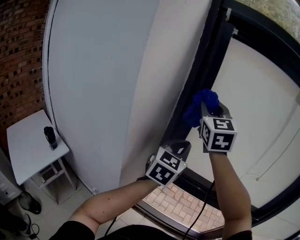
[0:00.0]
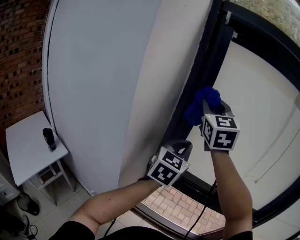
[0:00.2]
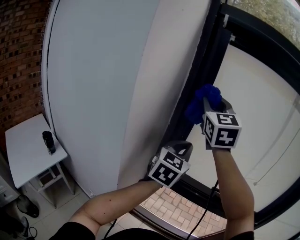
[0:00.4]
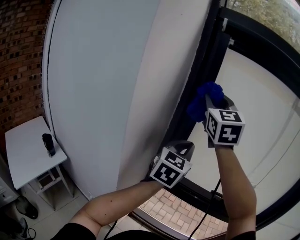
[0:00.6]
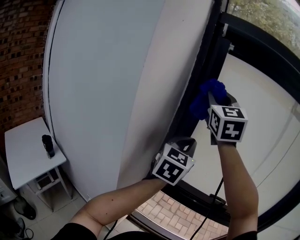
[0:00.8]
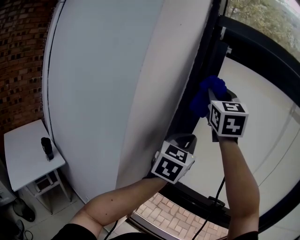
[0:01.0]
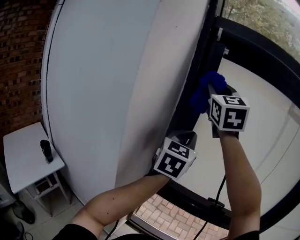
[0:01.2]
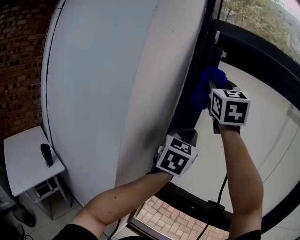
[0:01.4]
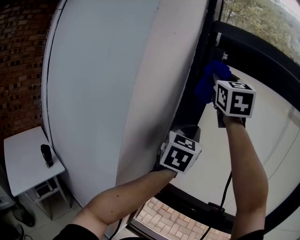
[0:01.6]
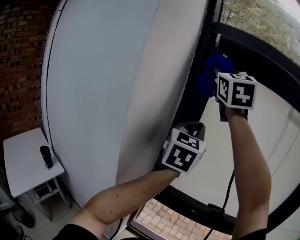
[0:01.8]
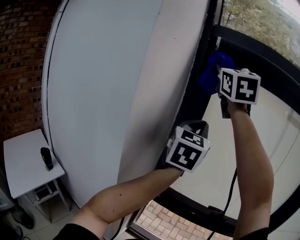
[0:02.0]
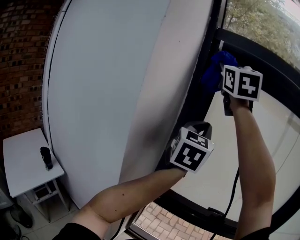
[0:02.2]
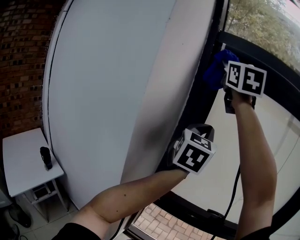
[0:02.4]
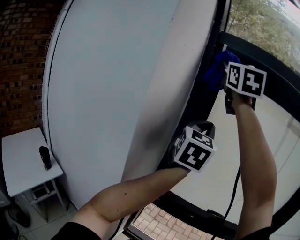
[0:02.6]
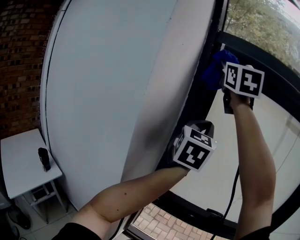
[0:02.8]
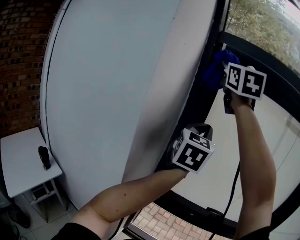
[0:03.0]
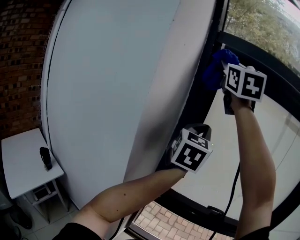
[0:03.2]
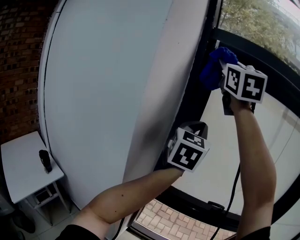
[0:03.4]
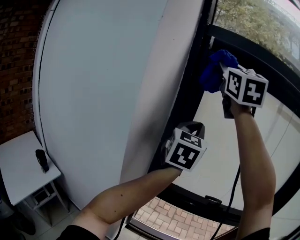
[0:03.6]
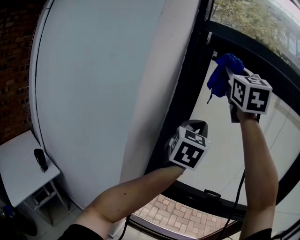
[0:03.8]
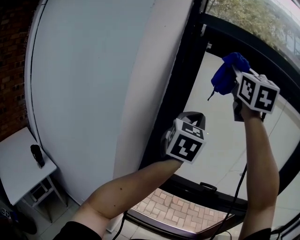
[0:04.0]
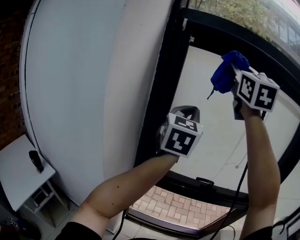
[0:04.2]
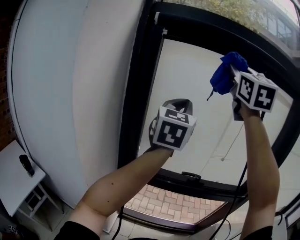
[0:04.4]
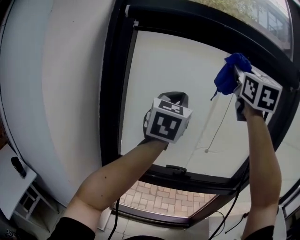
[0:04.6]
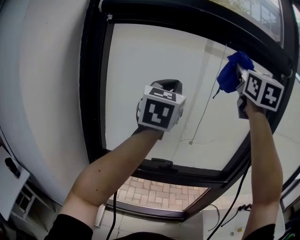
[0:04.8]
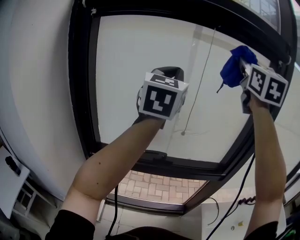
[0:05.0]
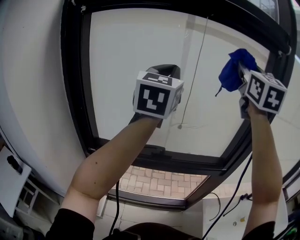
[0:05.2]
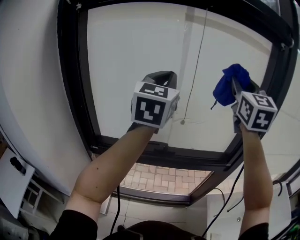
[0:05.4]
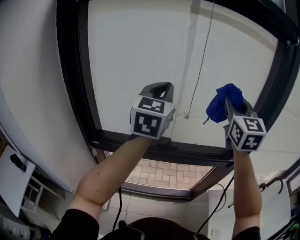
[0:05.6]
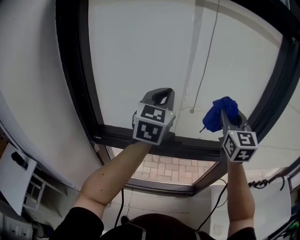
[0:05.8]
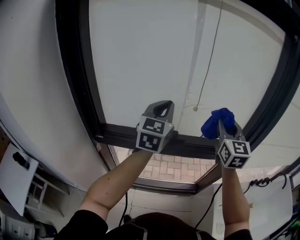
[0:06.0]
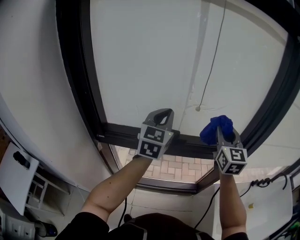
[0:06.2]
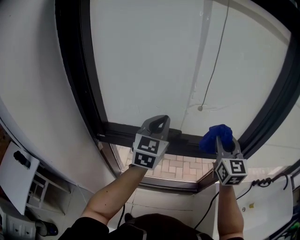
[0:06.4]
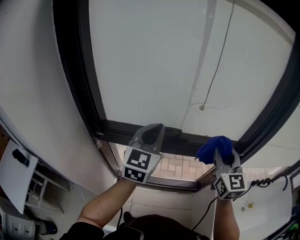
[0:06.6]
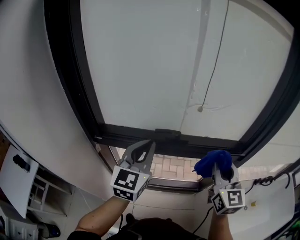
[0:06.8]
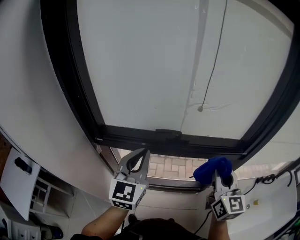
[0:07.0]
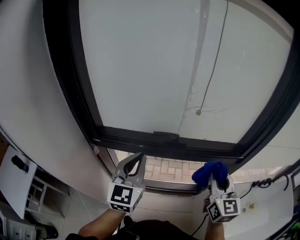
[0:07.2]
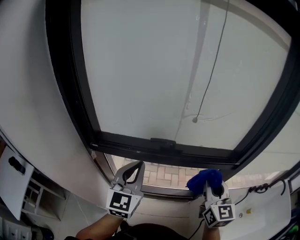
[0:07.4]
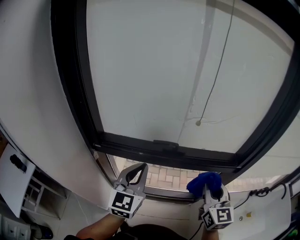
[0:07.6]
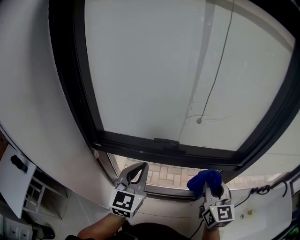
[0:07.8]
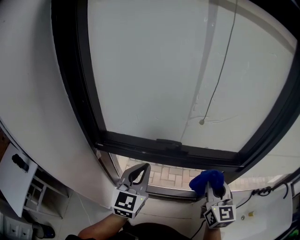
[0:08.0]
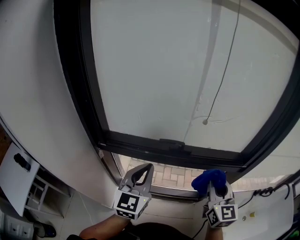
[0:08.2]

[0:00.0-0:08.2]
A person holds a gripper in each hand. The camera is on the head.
0:00.0 to 0:01.6: The grippers both shift upward by approximately 20 cm.
0:01.6 to 0:03.2: The right gripper shifts some 10 cm upward.
0:03.2 to 0:05.0: The left gripper moves to the right, roughly 30 cm; the right gripper moves to the right, about 50 cm, and turns by roughly 30 degrees.
0:05.0 to 0:06.6: The grippers both shift downward by some 40 cm. The right gripper swivels some 20 degrees.
0:06.6 to 0:08.2: The right gripper shifts some 5 cm downward; the left gripper travels backward and downward by approximately 10 cm.

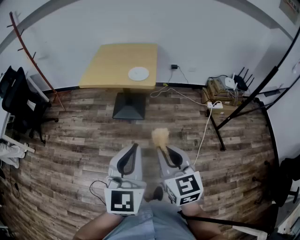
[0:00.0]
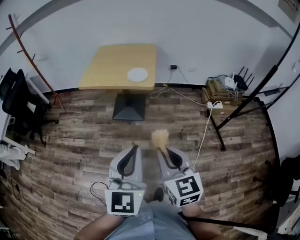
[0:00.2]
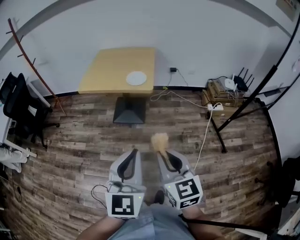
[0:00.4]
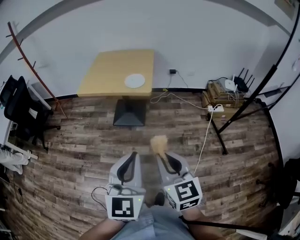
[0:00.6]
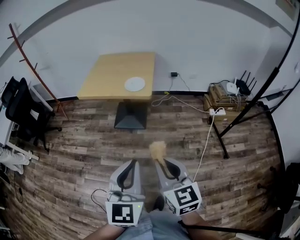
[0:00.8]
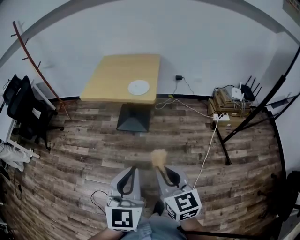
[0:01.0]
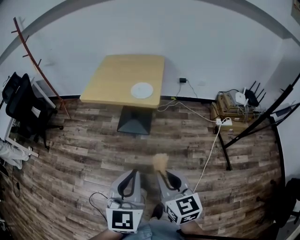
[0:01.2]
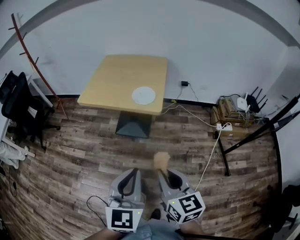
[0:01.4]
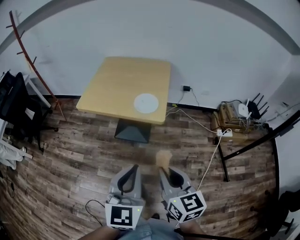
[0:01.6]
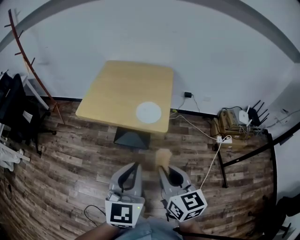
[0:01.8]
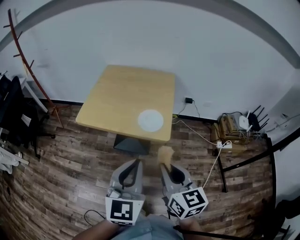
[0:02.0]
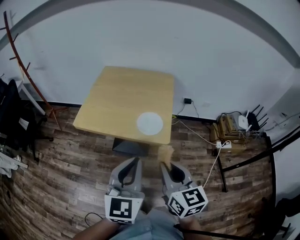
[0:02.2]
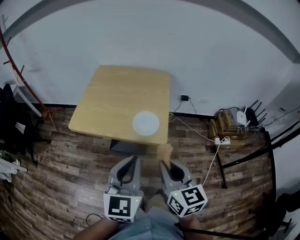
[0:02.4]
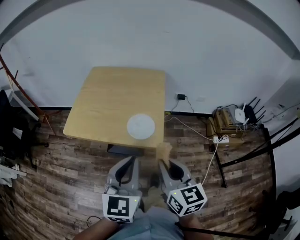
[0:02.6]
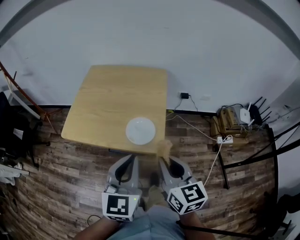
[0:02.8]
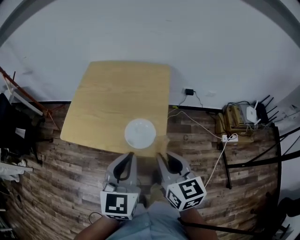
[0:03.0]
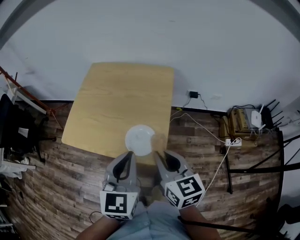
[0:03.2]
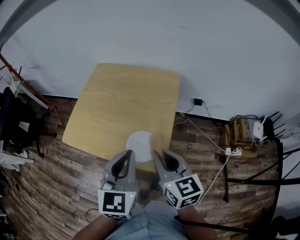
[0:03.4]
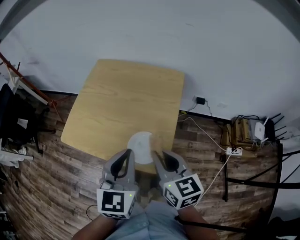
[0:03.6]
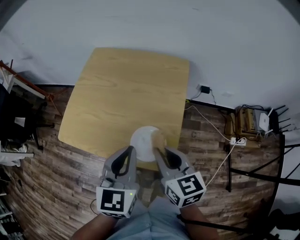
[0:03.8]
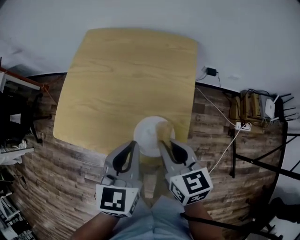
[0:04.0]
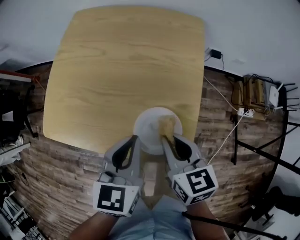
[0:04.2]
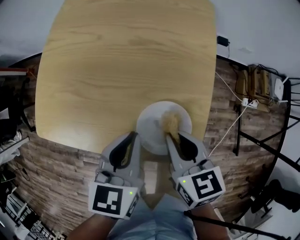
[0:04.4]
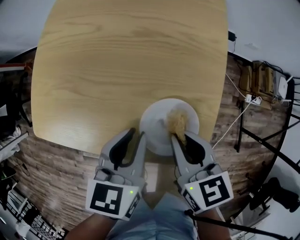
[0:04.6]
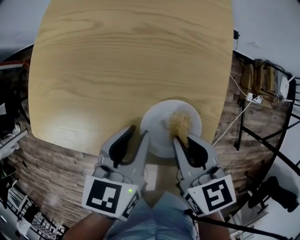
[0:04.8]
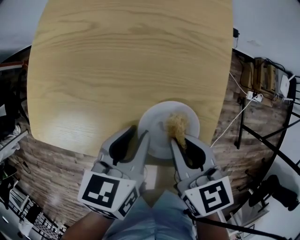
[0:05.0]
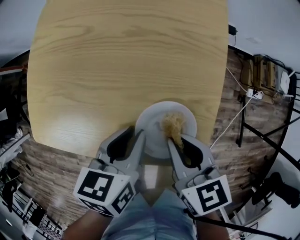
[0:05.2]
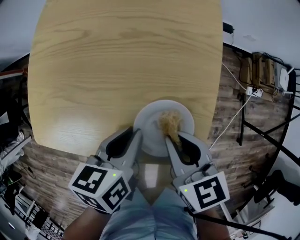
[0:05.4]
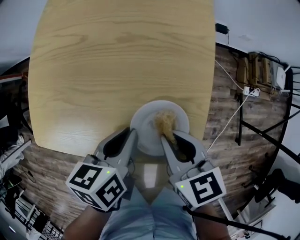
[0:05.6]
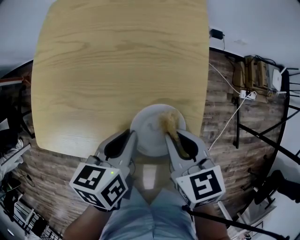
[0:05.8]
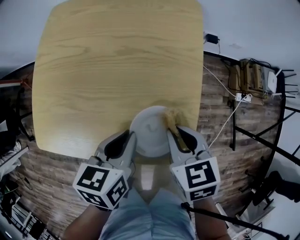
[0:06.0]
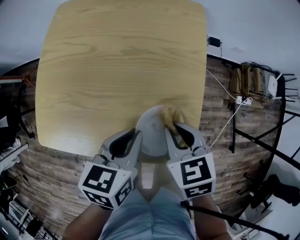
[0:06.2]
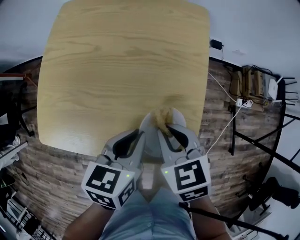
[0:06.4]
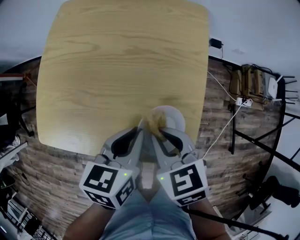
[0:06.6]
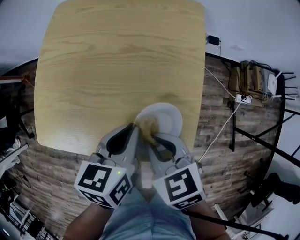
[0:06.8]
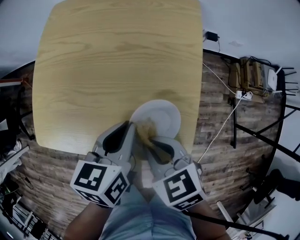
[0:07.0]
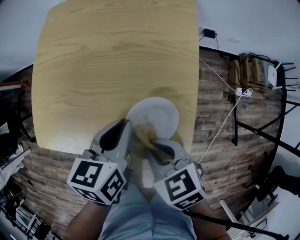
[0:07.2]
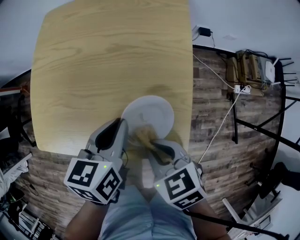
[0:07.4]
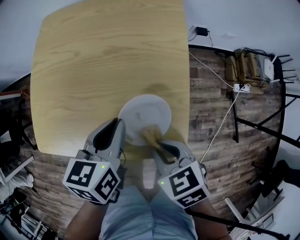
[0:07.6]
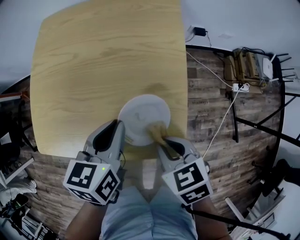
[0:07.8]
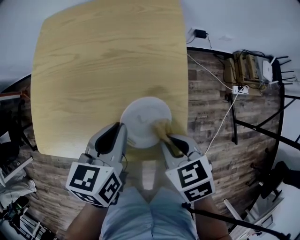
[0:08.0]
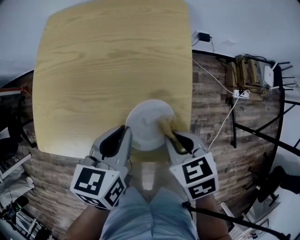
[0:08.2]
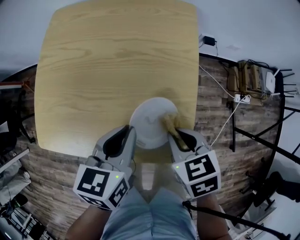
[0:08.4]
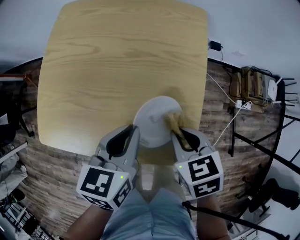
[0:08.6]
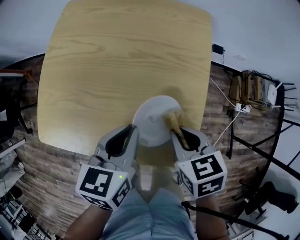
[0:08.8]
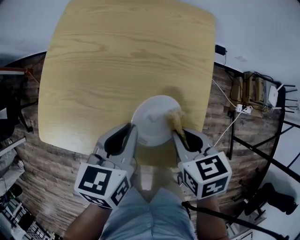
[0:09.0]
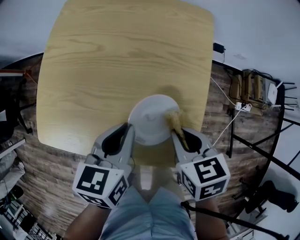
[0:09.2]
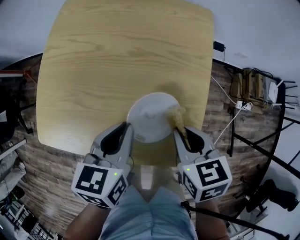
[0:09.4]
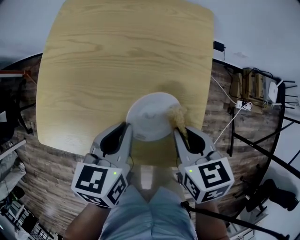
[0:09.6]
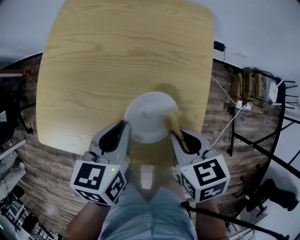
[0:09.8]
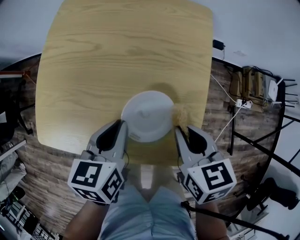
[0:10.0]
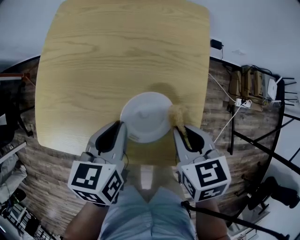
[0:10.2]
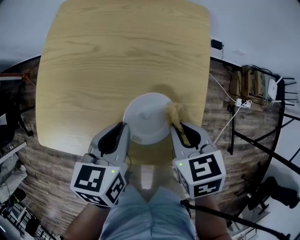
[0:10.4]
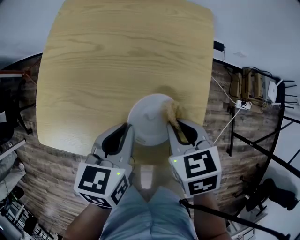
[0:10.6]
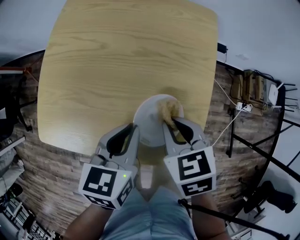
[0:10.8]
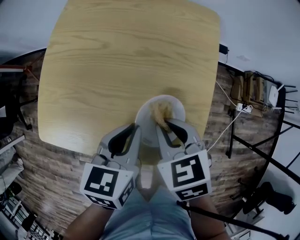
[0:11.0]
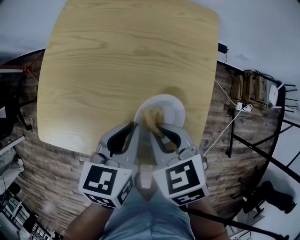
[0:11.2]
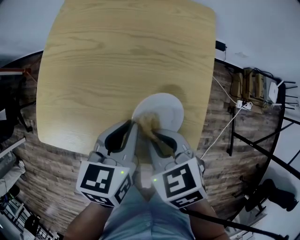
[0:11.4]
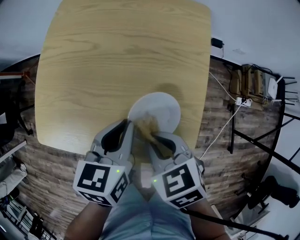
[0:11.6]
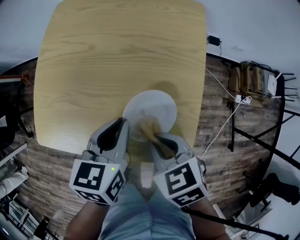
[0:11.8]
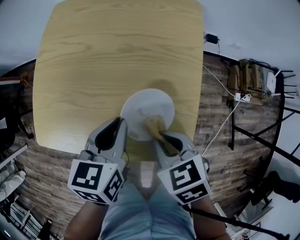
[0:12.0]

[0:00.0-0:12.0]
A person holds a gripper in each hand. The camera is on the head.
0:00.0 to 0:01.6: The grippers both shift forward by roughly 20 cm.
0:01.6 to 0:03.0: Both grippers travel together forward, approximately 30 cm.
0:03.0 to 0:04.4: The grippers both shift downward and forward by approximately 20 cm. The left gripper changes its angle by roughly 30 degrees, while the right gripper changes its angle by approximately 20 degrees.
0:06.0 to 0:07.6: The right gripper moves backward, about 5 cm.
0:07.6 to 0:09.0: The right gripper travels forward by approximately 10 cm.
0:09.0 to 0:10.4: The grippers stay close to where they were, moving slightly.
0:10.4 to 0:12.0: The right gripper shifts by approximately 5 cm.

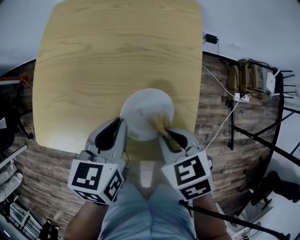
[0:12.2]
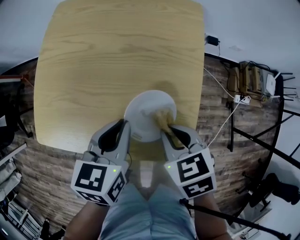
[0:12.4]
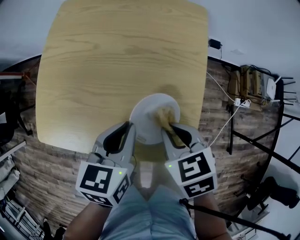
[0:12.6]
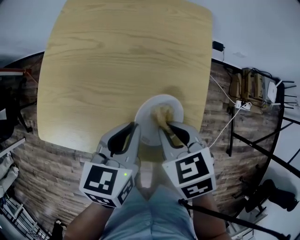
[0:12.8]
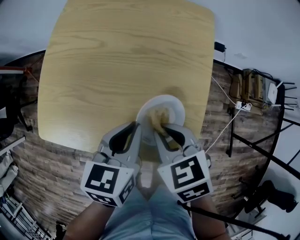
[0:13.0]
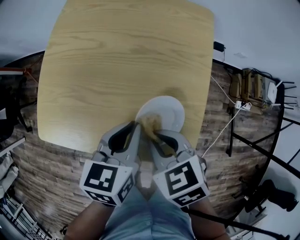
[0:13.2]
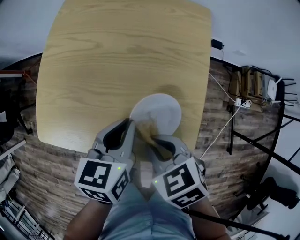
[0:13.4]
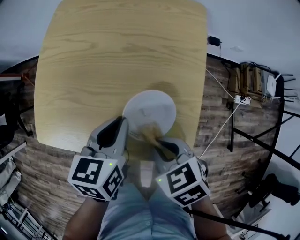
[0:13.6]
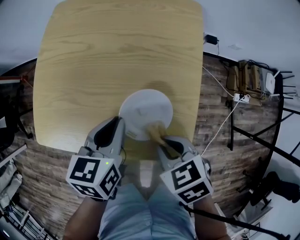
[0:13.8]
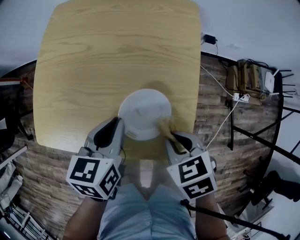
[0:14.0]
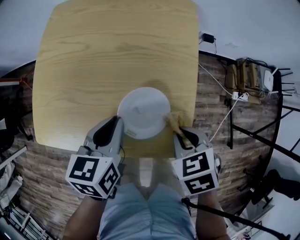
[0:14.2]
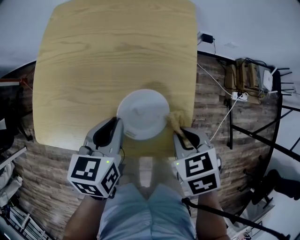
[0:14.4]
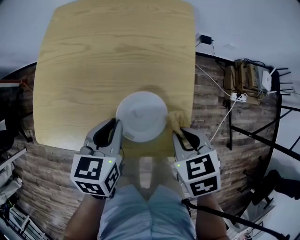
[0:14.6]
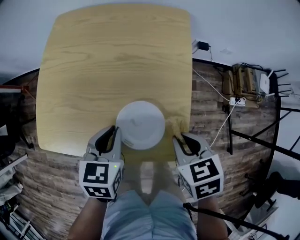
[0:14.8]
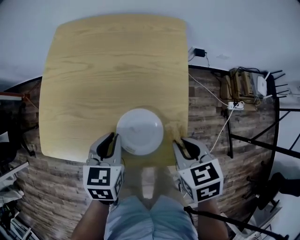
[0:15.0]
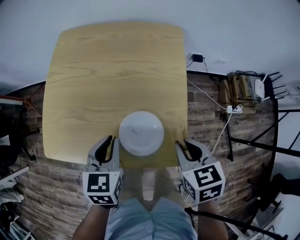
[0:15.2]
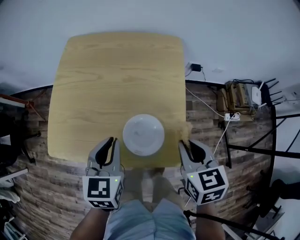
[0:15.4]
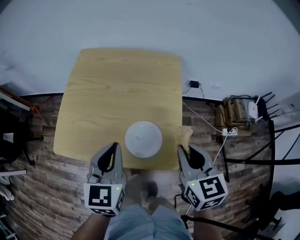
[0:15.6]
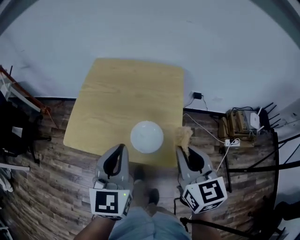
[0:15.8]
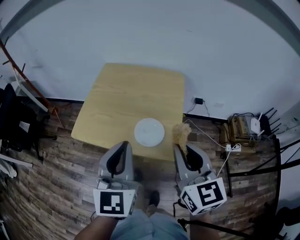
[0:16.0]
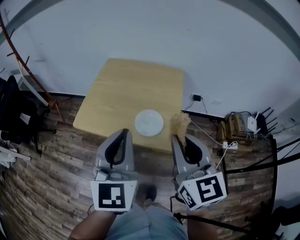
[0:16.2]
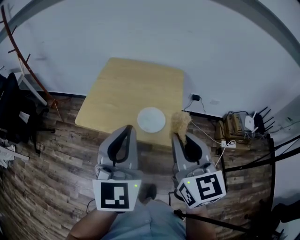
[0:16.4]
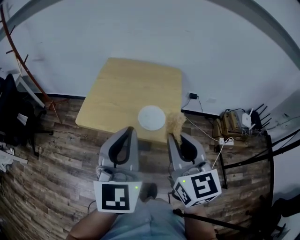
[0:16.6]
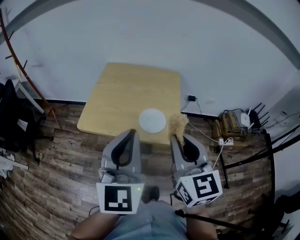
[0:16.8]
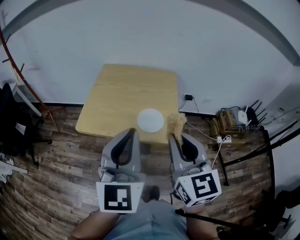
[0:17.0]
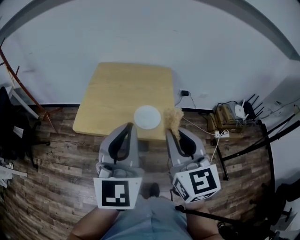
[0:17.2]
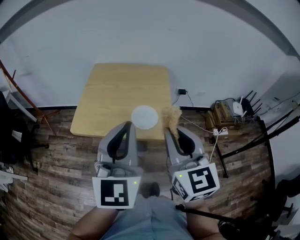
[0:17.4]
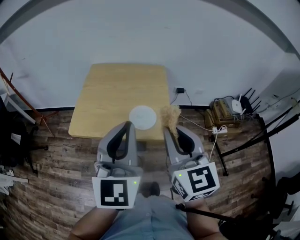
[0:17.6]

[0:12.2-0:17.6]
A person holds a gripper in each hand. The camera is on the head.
0:13.6 to 0:15.0: The right gripper travels to the right by some 10 cm, and swivels approximately 20 degrees.
0:15.0 to 0:16.2: Both grippers move upward and backward, some 35 cm. The left gripper points its fingers approximately 40 degrees further upward. The right gripper angles its fingers upward, by approximately 50 degrees.
0:16.2 to 0:17.6: The right gripper shifts by approximately 5 cm.
